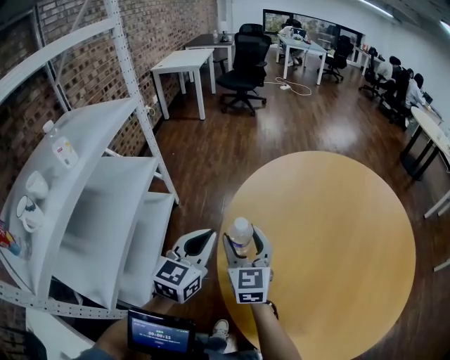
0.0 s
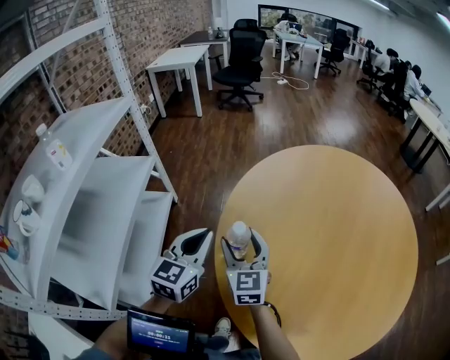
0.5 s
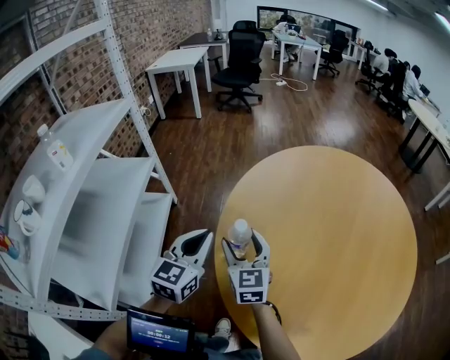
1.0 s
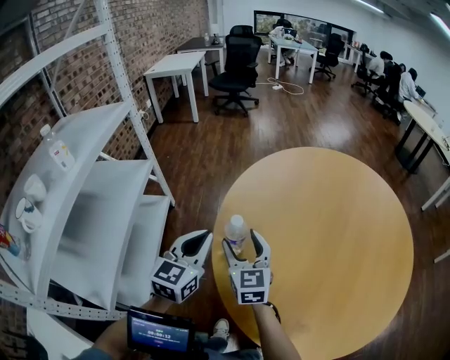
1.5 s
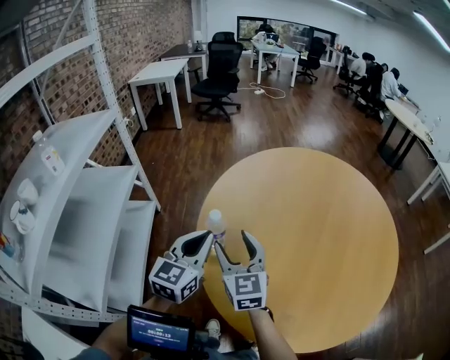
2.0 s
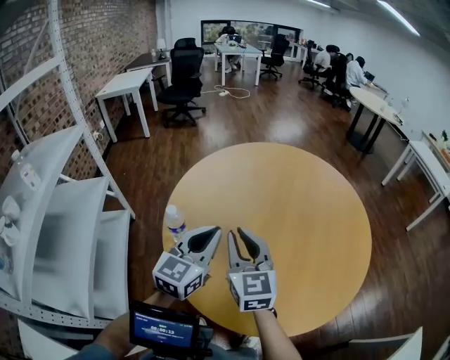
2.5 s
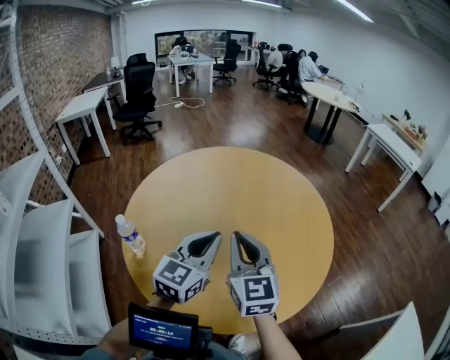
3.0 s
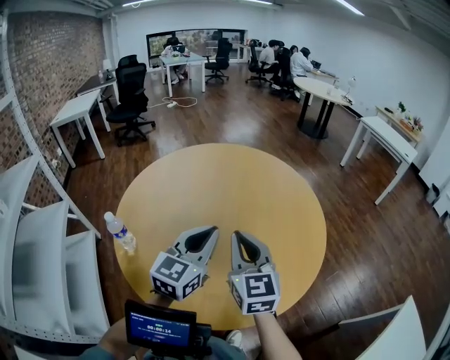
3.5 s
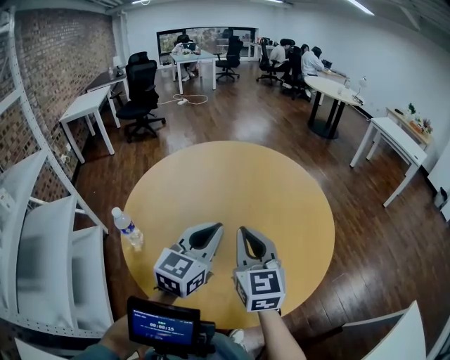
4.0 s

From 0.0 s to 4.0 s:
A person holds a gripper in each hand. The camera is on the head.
From 0.0 s to 2.0 s: The right gripper shifts roughly 10 cm backward and to the right; the left gripper is displaced to the right by about 5 cm.
From 2.0 s to 4.0 s: The right gripper ends up about 35 cm from where it was, swivels approximately 20 degrees, and closes its fingers, while the left gripper moves roughly 35 cm, and changes its angle by roughly 20 degrees.

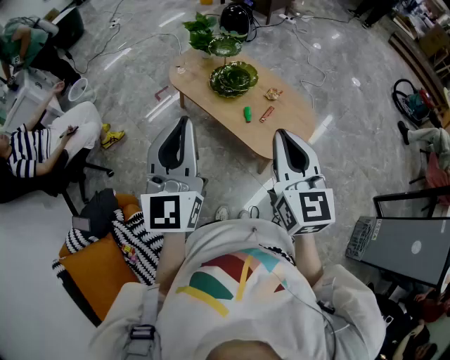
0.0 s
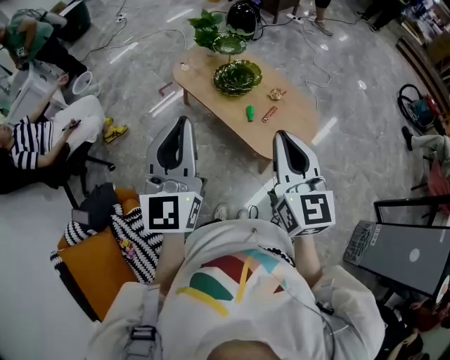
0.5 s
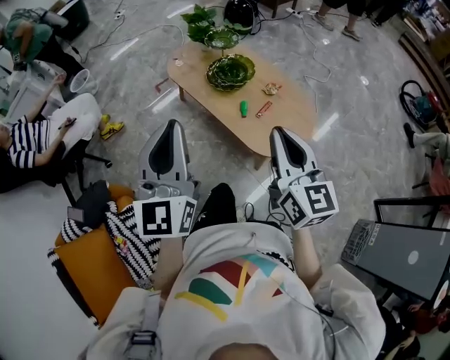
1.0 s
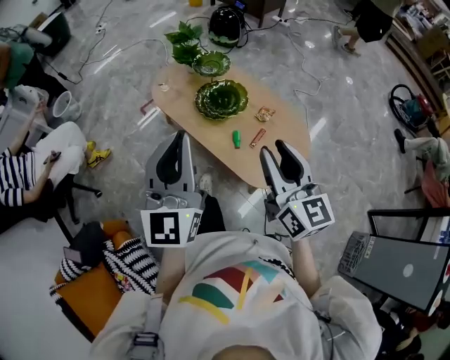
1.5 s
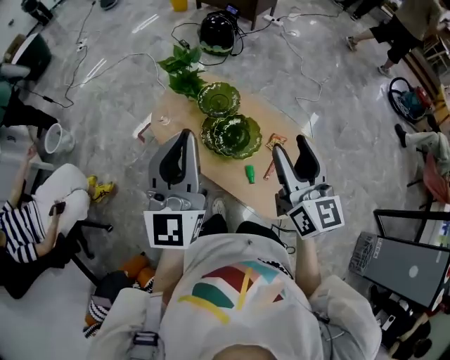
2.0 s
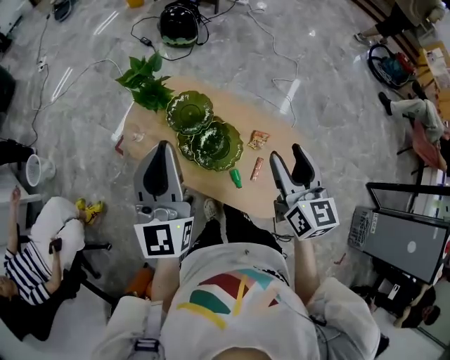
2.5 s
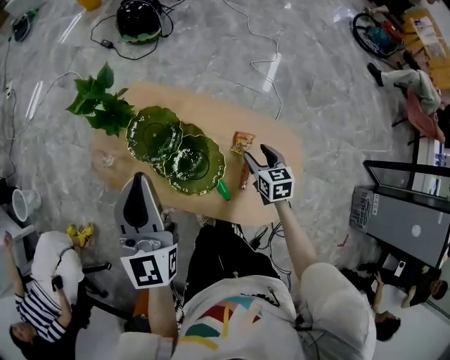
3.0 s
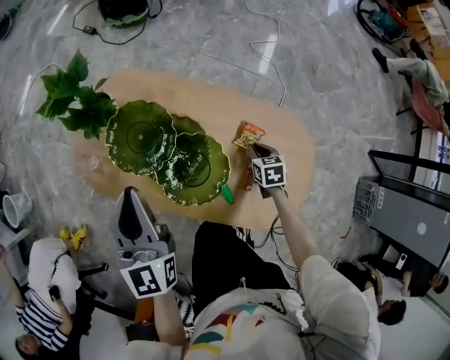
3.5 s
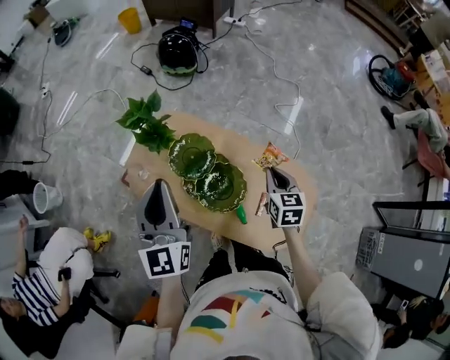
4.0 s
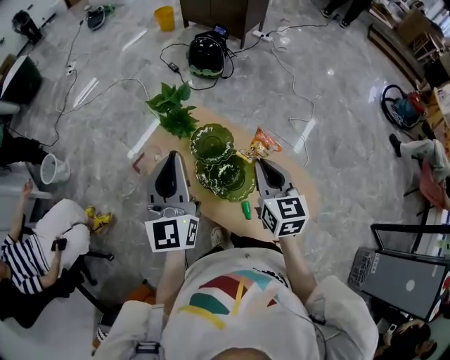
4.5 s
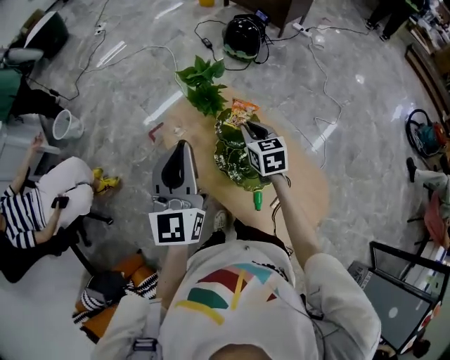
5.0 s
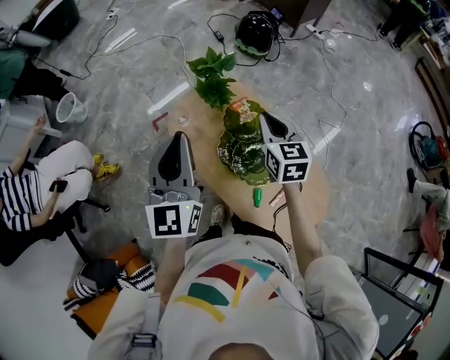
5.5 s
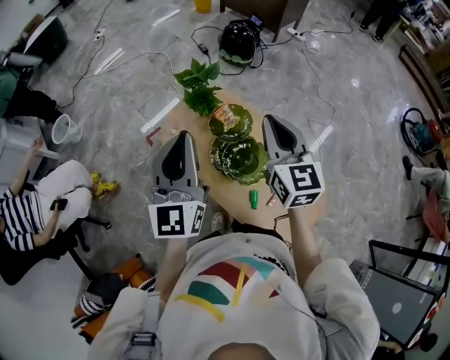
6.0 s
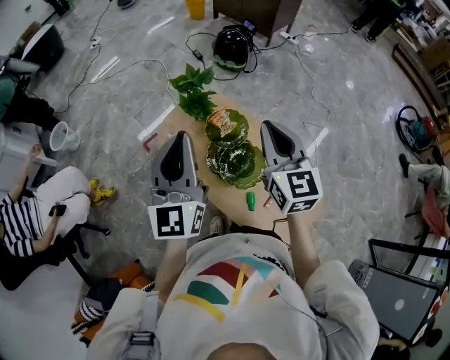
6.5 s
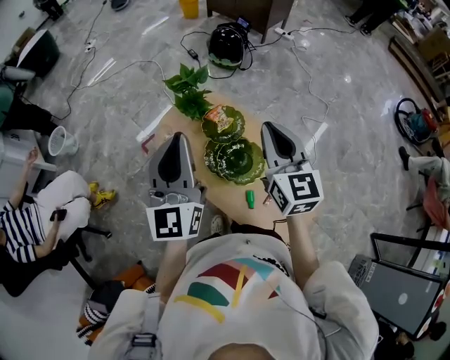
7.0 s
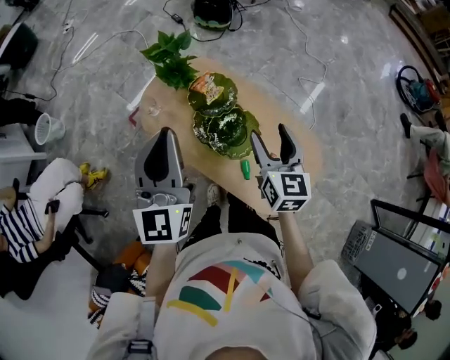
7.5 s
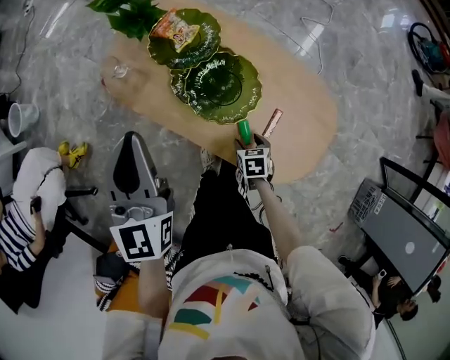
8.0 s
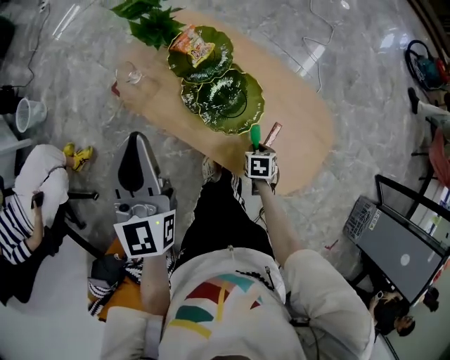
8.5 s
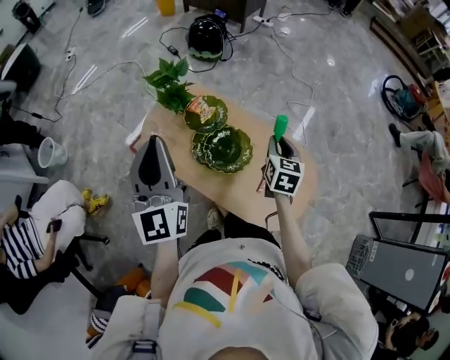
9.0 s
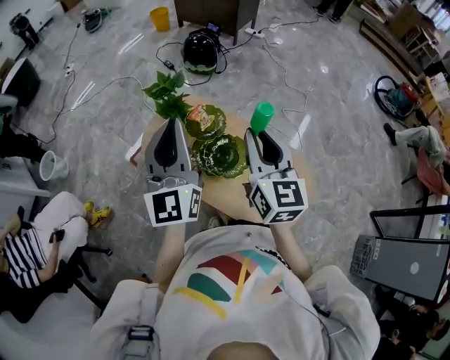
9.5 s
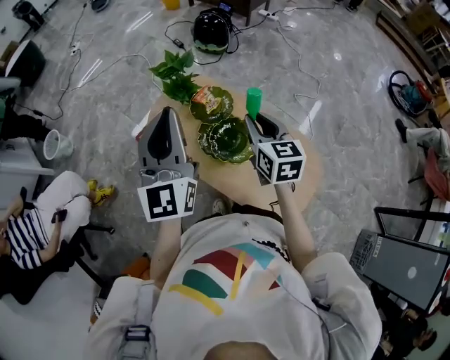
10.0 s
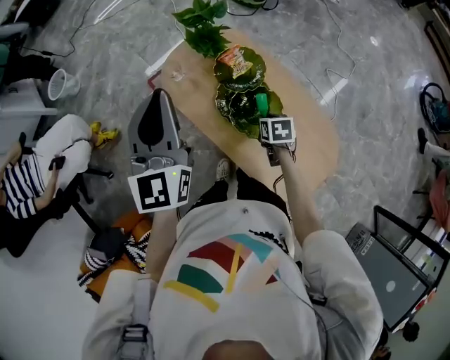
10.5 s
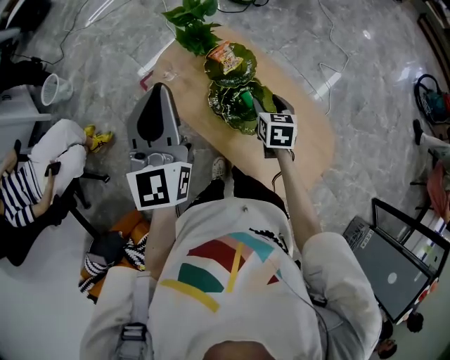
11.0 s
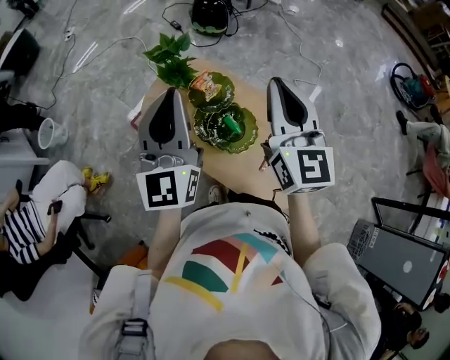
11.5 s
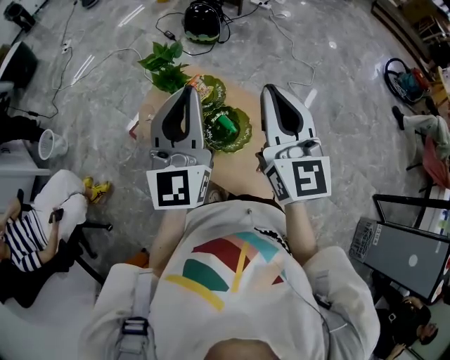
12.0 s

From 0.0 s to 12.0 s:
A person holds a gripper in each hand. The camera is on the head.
From 0.0 s to 2.0 s: Both grippers move forward, roughly 35 cm. The right gripper opens its fingers.
From 2.0 s to 4.0 s: The right gripper heads downward and forward, covering some 30 cm, angles its fingers downward, by roughly 40 degrees, and closes its fingers. Meanwhile the left gripper goes about 20 cm forward and downward.
From 4.0 s to 6.0 s: The left gripper travels upward, backward and to the left by approximately 10 cm. The right gripper moves up and down over some 25 cm, changing direction 2 times, and rotates approximately 40 degrees.
From 6.0 s to 8.0 s: The right gripper shifts roughly 50 cm downward, angles its fingers downward, by roughly 60 degrees, and opens. Meanwhile the left gripper heads downward, covering roughly 20 cm.
From 8.0 s to 10.0 s: The left gripper moves upward, about 20 cm, and turns by approximately 20 degrees; the right gripper travels upward by approximately 50 cm, points its fingers approximately 50 degrees further upward, and closes.
From 10.0 s to 12.0 s: The left gripper travels to the right by about 5 cm; the right gripper goes about 15 cm upward, changes its angle by about 30 degrees, and opens, then closes once more.

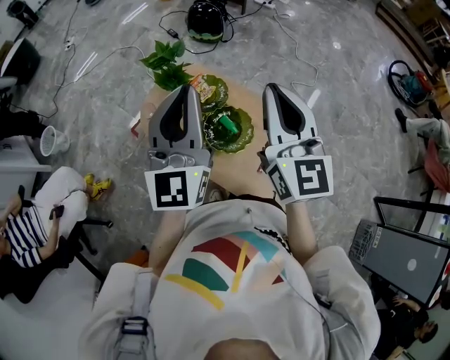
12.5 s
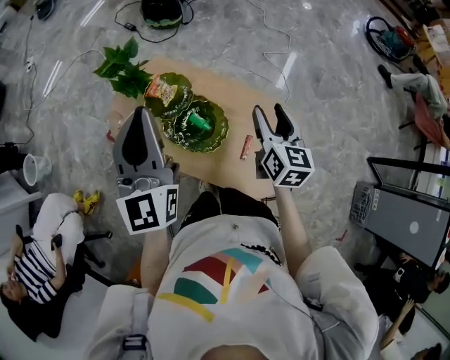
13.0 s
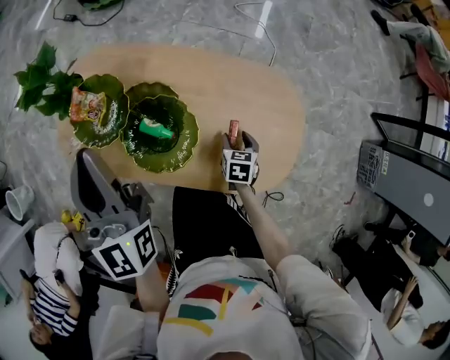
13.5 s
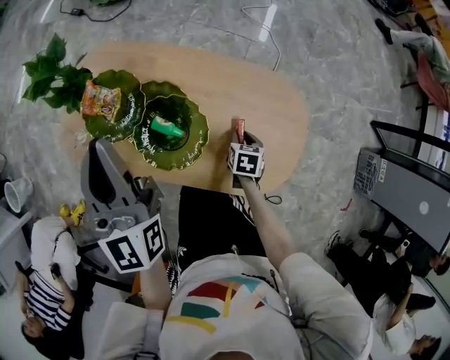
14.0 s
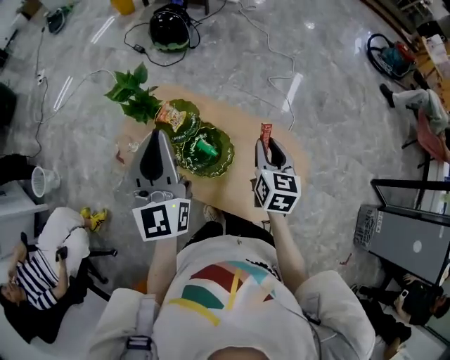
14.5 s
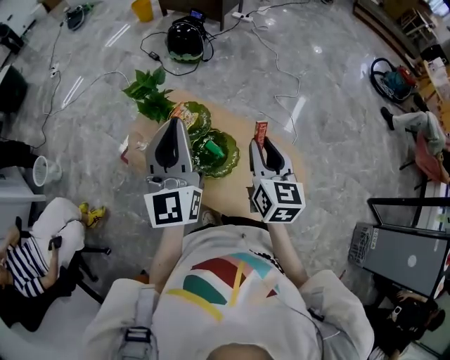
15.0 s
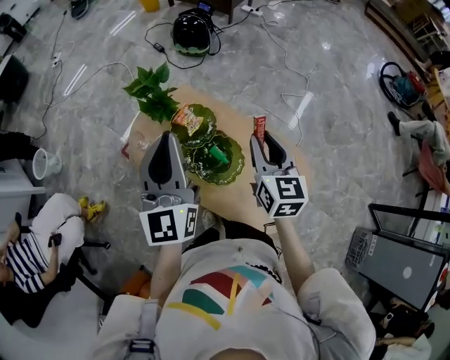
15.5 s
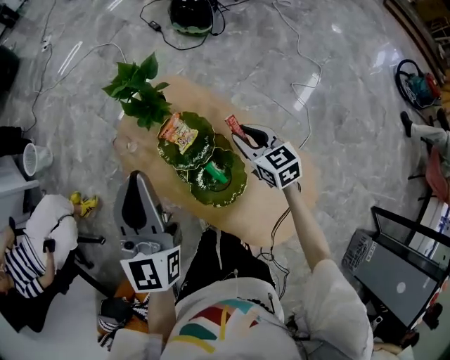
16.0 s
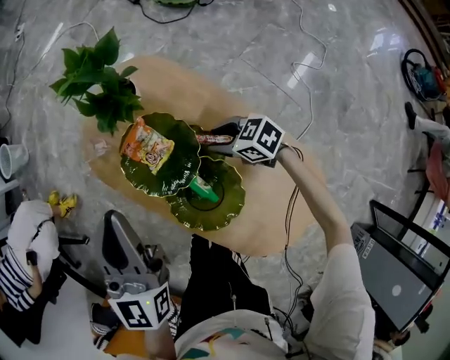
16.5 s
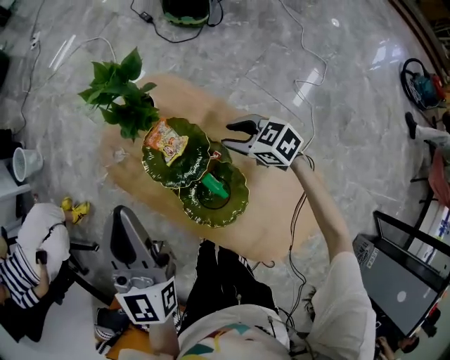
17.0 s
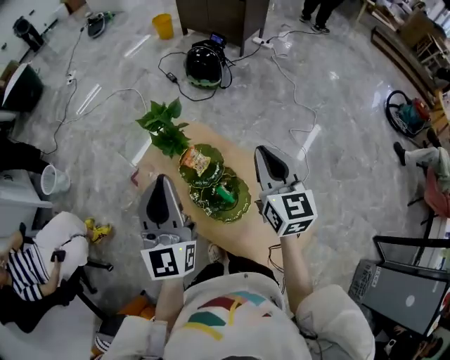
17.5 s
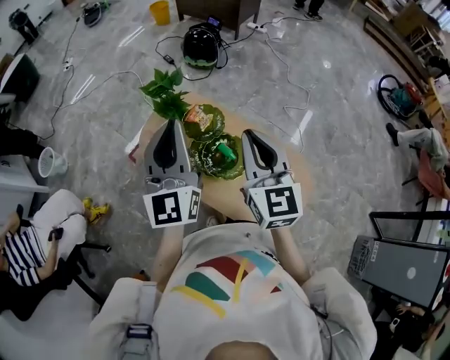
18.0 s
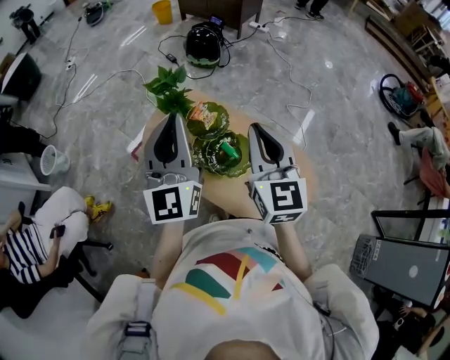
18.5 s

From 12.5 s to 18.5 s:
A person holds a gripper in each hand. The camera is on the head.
From 12.5 s to 14.5 s: The left gripper shifts some 10 cm downward and forward; the right gripper moves downward and to the right, about 25 cm, angles its fingers downward, by some 30 degrees, and opens and closes again.
From 14.5 s to 16.5 s: The right gripper shifts about 30 cm downward, and swivels approximately 90 degrees. The left gripper goes approximately 15 cm downward, and turns by roughly 20 degrees.
From 16.5 s to 18.5 s: The right gripper heads upward, covering roughly 50 cm, angles its fingers upward, by approximately 40 degrees, and closes its fingers. Meanwhile the left gripper travels upward by about 25 cm, and rotates some 30 degrees.

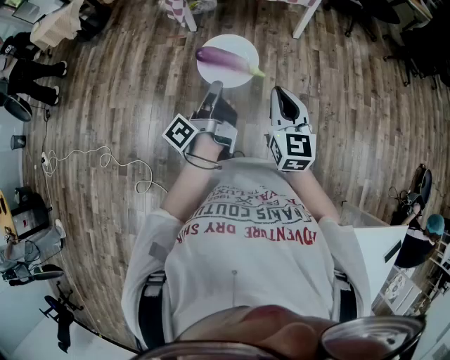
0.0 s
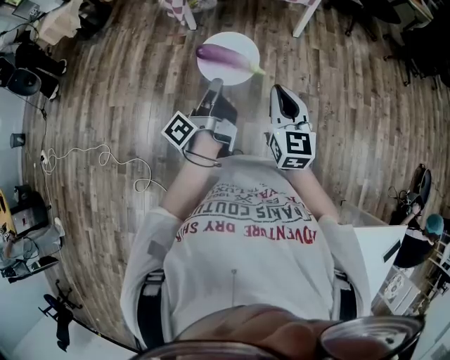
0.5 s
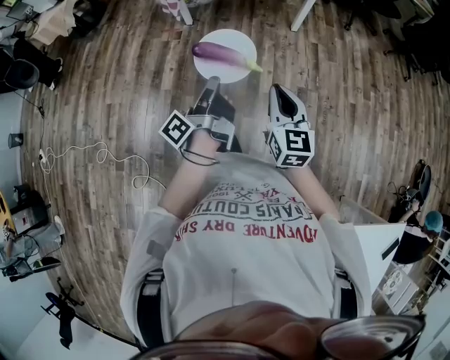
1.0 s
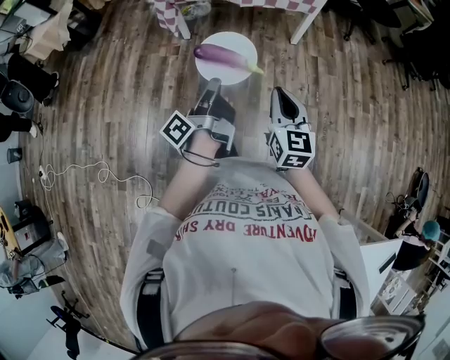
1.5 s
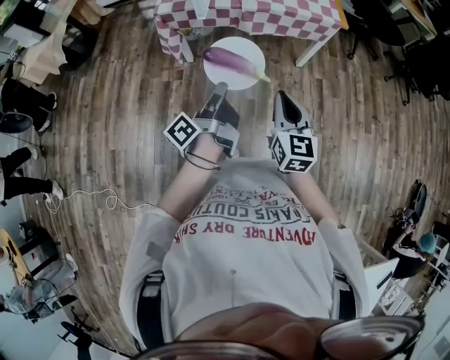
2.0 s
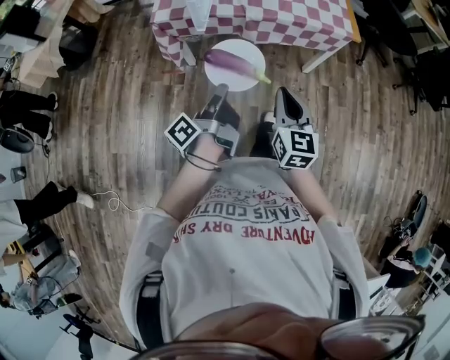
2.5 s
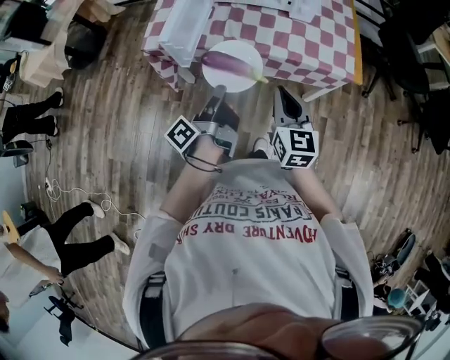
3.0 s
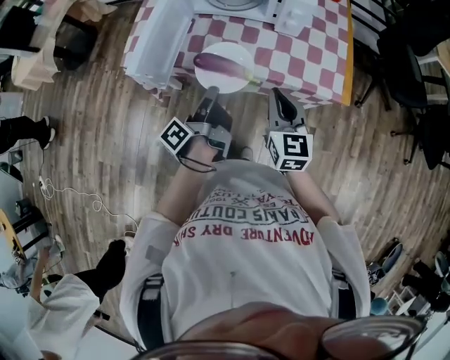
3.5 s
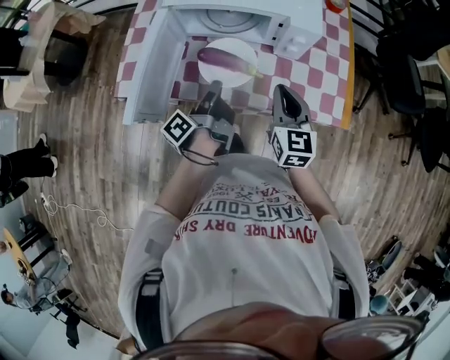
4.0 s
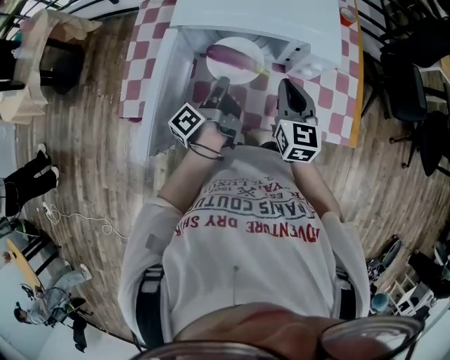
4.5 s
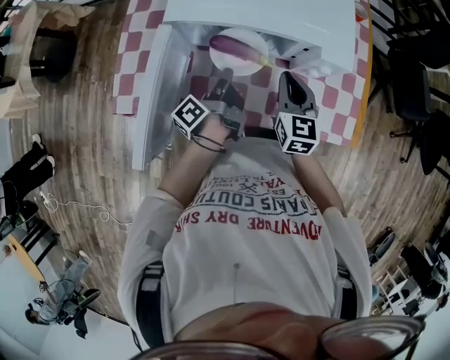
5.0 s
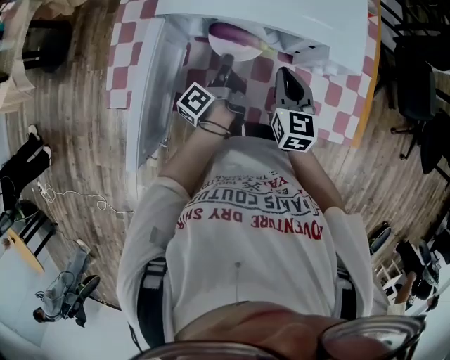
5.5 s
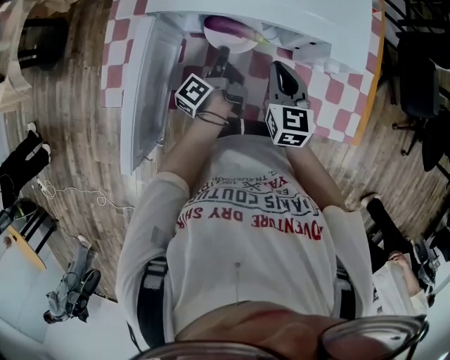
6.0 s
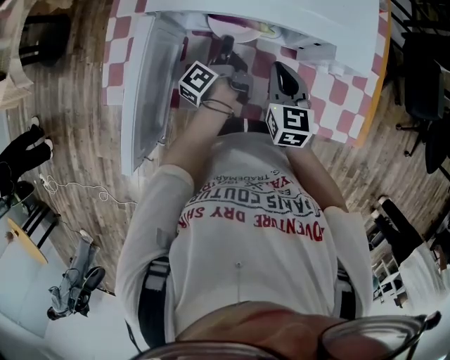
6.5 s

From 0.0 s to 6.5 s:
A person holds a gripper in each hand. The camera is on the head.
From 0.0 s to 2.0 s: The right gripper ends up roughly 35 cm from where it was.
From 2.0 s to 4.5 s: The right gripper ends up roughly 70 cm from where it was.
From 4.5 s to 6.5 s: The right gripper heads downward, covering about 10 cm.
